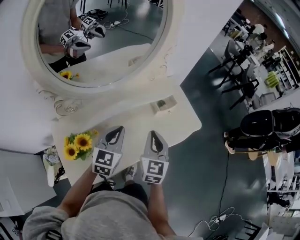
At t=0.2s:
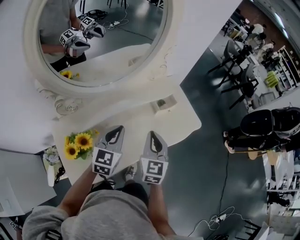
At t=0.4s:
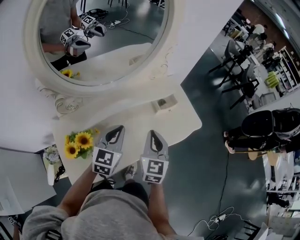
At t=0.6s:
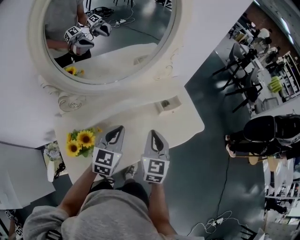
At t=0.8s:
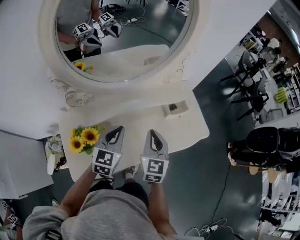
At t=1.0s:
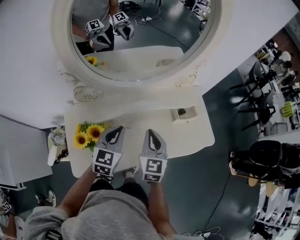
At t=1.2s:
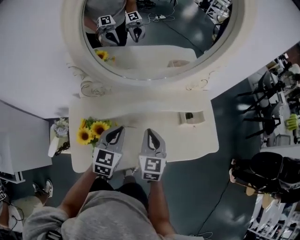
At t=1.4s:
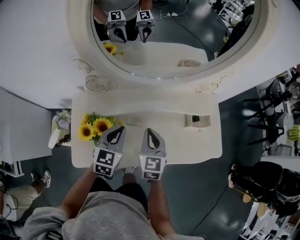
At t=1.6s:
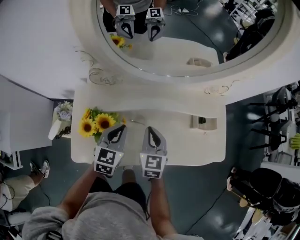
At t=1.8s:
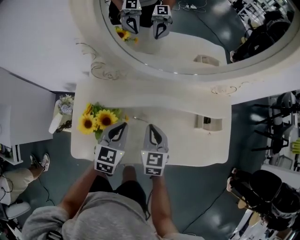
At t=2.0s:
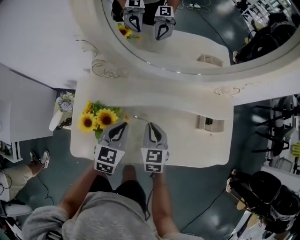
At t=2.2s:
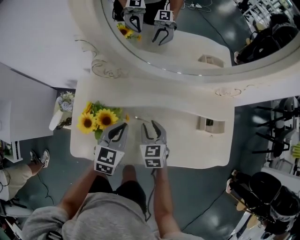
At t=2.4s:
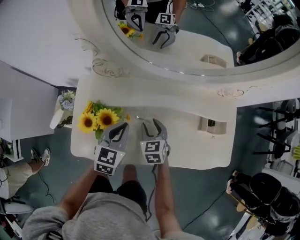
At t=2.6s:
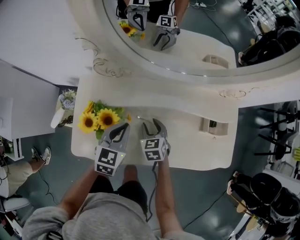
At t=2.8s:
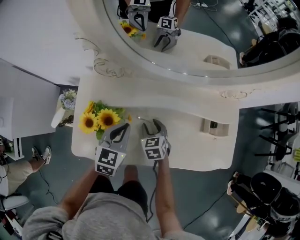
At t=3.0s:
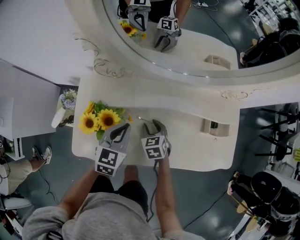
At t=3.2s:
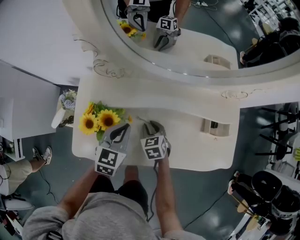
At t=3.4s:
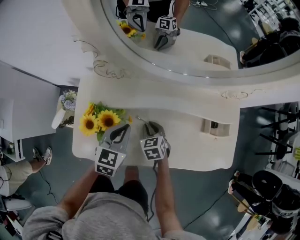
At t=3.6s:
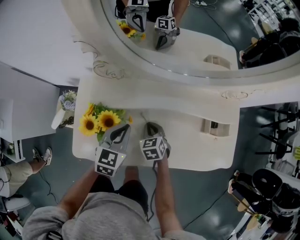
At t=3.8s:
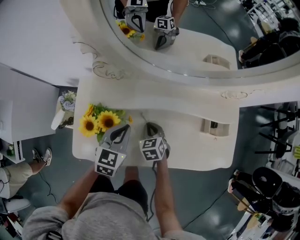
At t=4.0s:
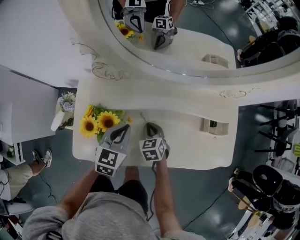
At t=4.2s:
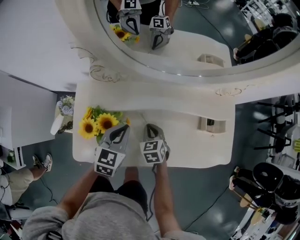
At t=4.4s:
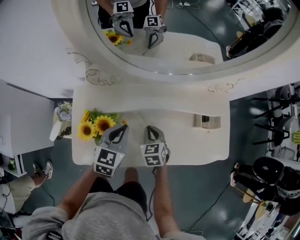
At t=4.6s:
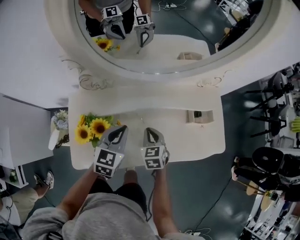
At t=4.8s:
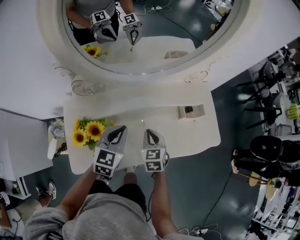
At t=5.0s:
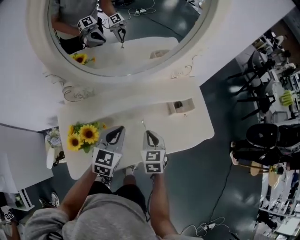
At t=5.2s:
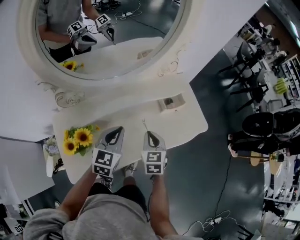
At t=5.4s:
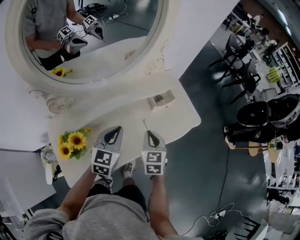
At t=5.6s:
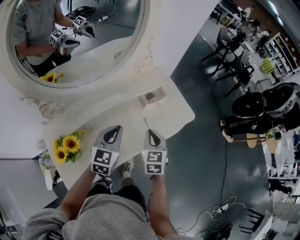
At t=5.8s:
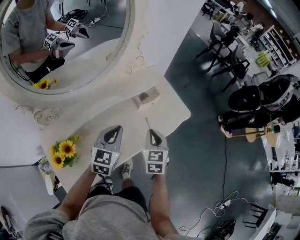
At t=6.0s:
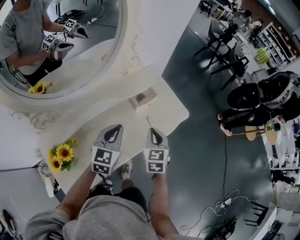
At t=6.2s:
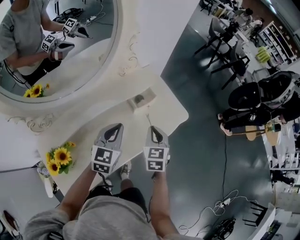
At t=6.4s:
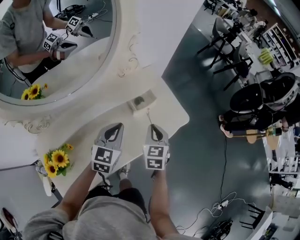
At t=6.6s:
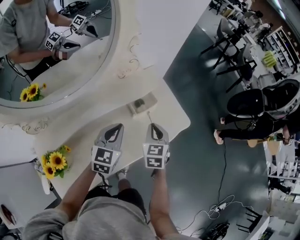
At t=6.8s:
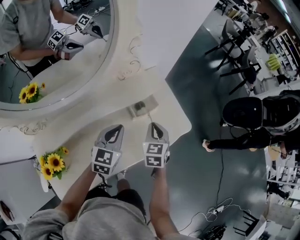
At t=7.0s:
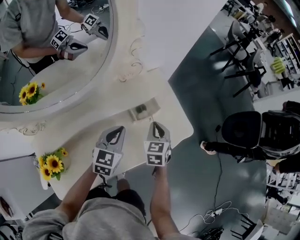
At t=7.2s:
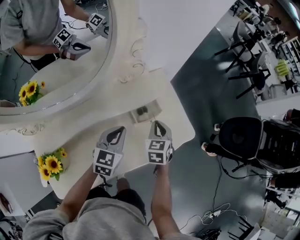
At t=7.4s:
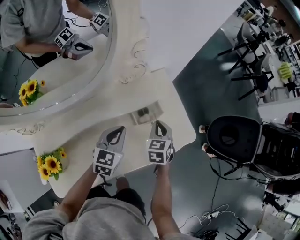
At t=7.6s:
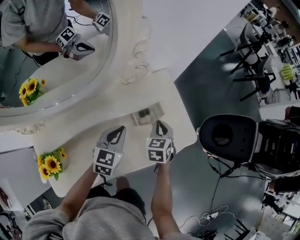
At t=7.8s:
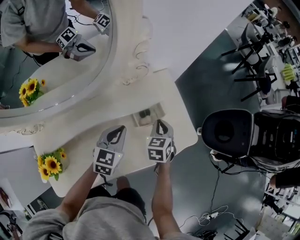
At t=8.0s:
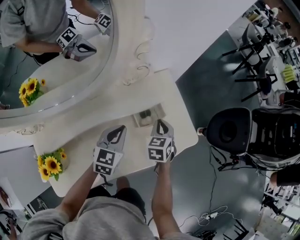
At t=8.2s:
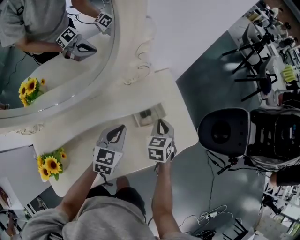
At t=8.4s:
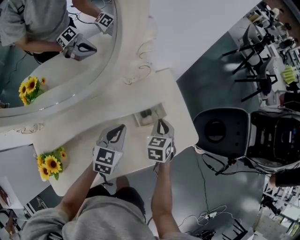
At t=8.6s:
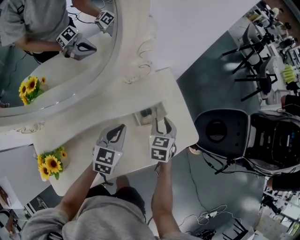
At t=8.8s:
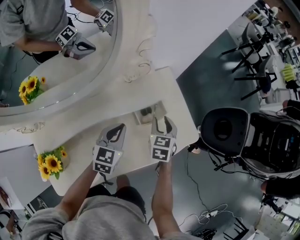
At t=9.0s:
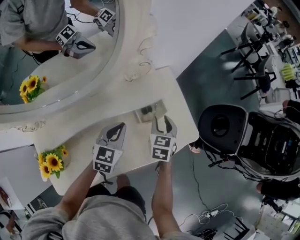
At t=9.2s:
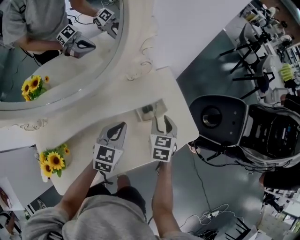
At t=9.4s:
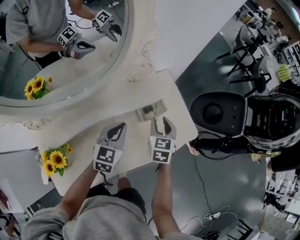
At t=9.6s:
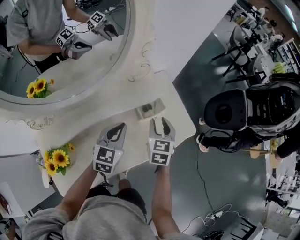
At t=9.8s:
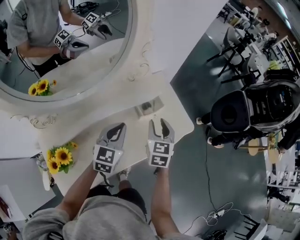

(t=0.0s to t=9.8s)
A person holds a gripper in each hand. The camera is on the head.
t=0.0s - t=1.4s: The left gripper shifts by roughly 15 cm, and turns by some 20 degrees. The right gripper moves about 15 cm, and turns by about 30 degrees.
t=1.4s - t=2.8s: The left gripper moves downward, some 5 cm; the right gripper is displaced downward by some 15 cm, swivels some 30 degrees, and opens up.
t=2.8s - t=4.2s: The right gripper closes up.
t=4.2s - t=5.6s: The left gripper ends up roughly 20 cm from where it was, and swivels roughly 30 degrees. The right gripper moves some 30 cm, and rotates roughly 50 degrees.
t=5.6s - t=7.0s: The right gripper heads forward, covering about 15 cm; the left gripper is displaced forward, to the right and downward by approximately 15 cm.
t=7.0s - t=8.4s: The right gripper shifts some 5 cm forward.
t=8.4s - t=9.8s: The grippers both shift upward and backward by approximately 15 cm. The right gripper opens its fingers.

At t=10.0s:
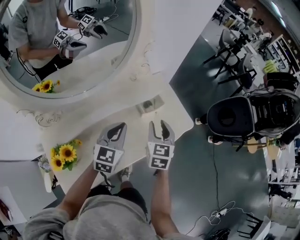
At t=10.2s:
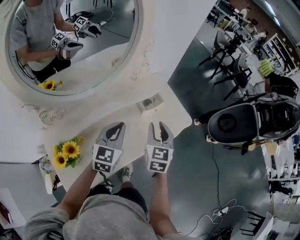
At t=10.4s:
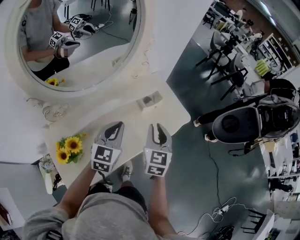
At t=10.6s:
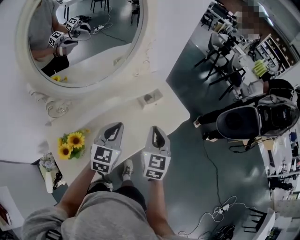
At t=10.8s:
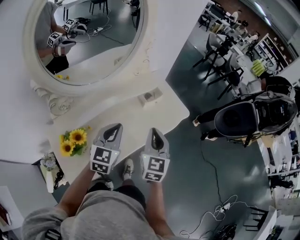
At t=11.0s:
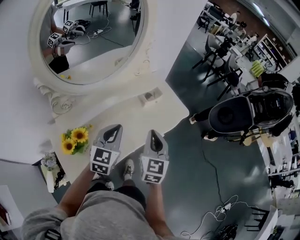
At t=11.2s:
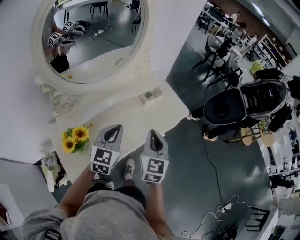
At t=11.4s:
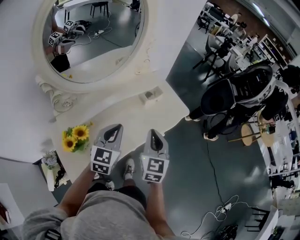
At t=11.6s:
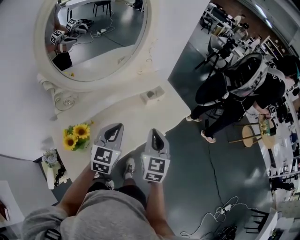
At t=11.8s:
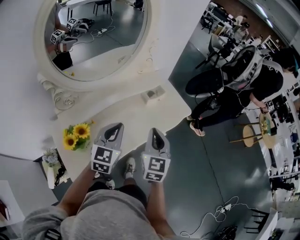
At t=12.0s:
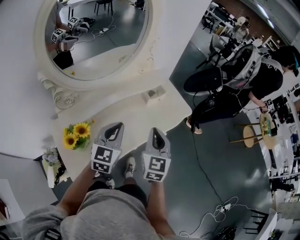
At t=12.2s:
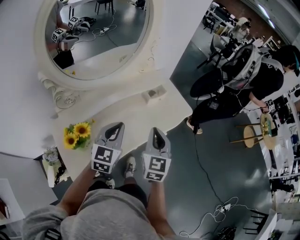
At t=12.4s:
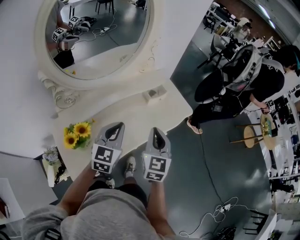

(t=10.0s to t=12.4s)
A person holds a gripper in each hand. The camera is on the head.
t=10.0s - t=11.2s: The grippers both shift backward by approximately 15 cm. The right gripper closes up.
t=11.2s - t=12.4s: Neither gripper changes place.

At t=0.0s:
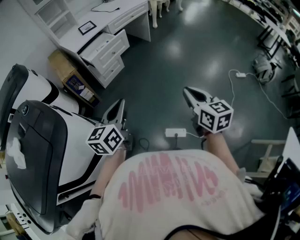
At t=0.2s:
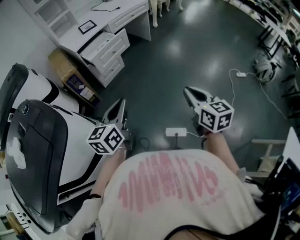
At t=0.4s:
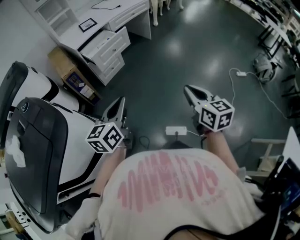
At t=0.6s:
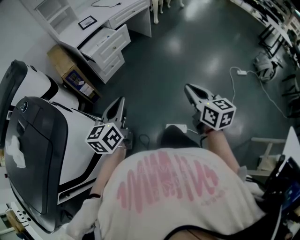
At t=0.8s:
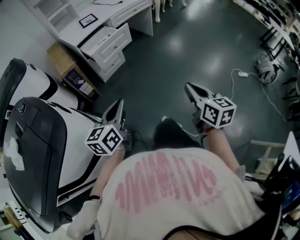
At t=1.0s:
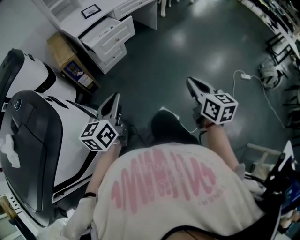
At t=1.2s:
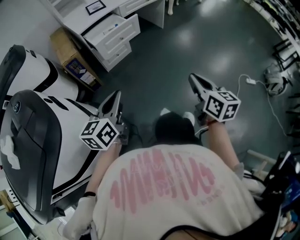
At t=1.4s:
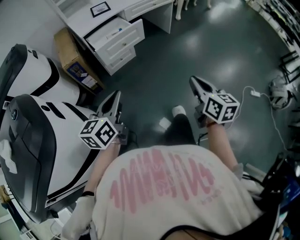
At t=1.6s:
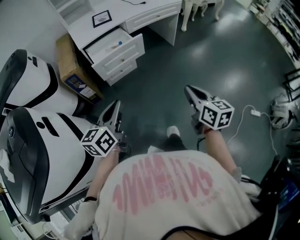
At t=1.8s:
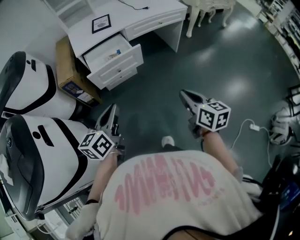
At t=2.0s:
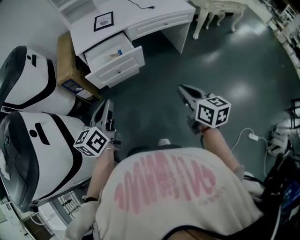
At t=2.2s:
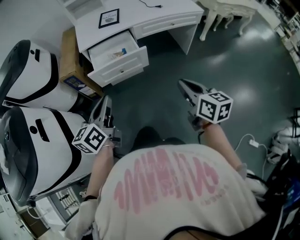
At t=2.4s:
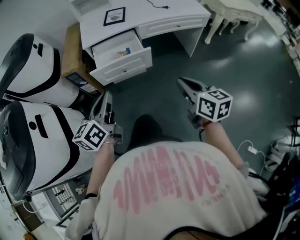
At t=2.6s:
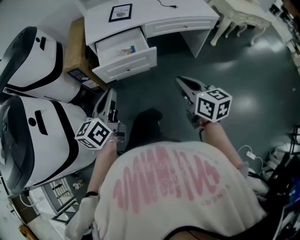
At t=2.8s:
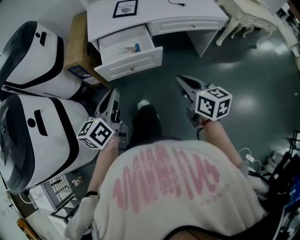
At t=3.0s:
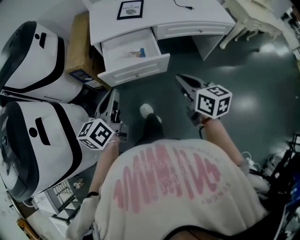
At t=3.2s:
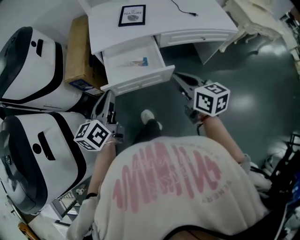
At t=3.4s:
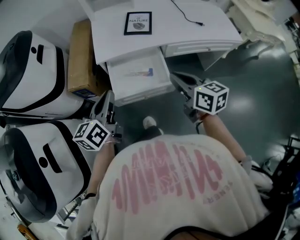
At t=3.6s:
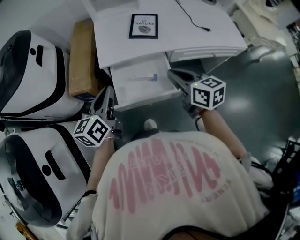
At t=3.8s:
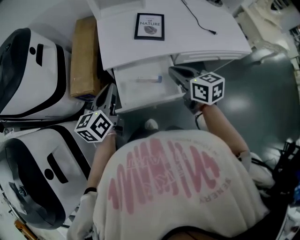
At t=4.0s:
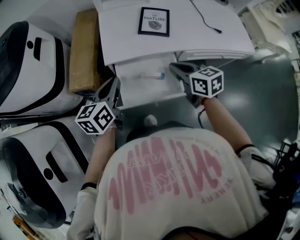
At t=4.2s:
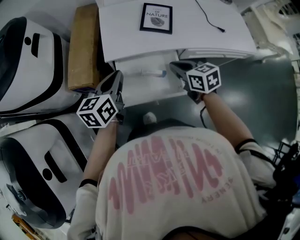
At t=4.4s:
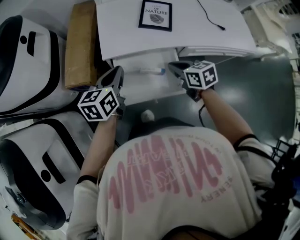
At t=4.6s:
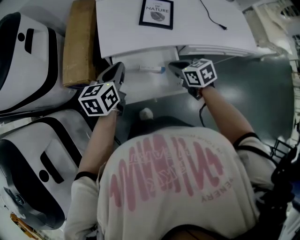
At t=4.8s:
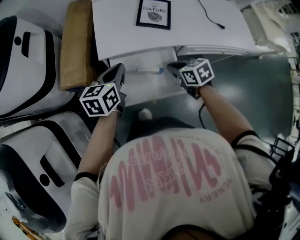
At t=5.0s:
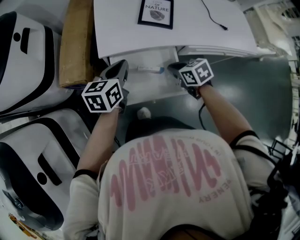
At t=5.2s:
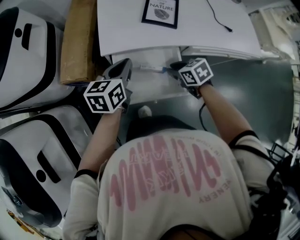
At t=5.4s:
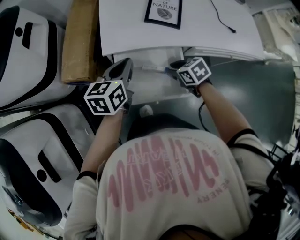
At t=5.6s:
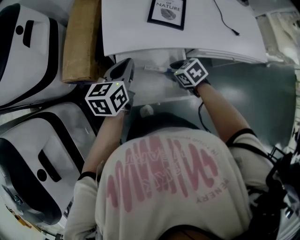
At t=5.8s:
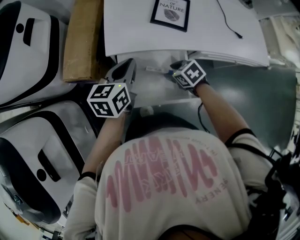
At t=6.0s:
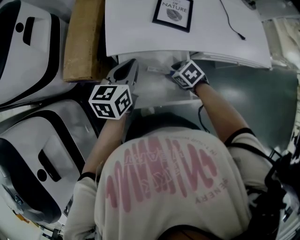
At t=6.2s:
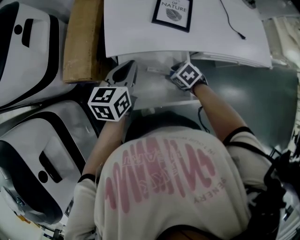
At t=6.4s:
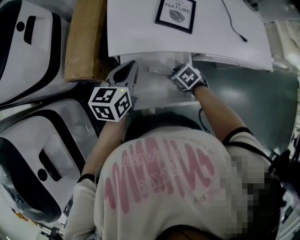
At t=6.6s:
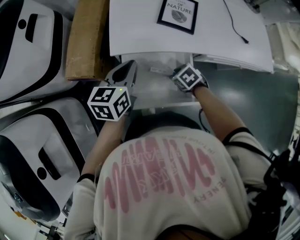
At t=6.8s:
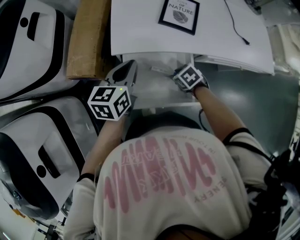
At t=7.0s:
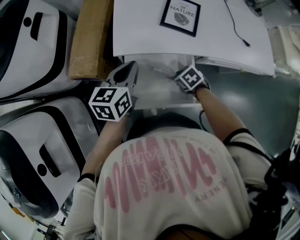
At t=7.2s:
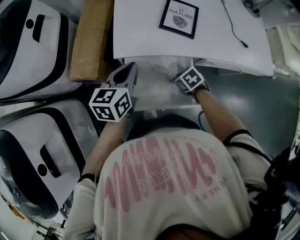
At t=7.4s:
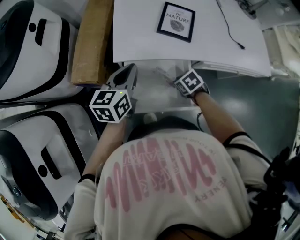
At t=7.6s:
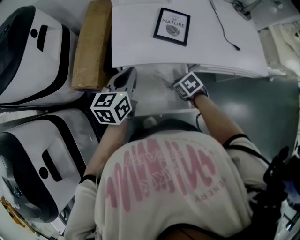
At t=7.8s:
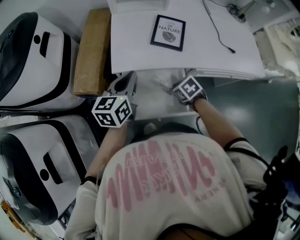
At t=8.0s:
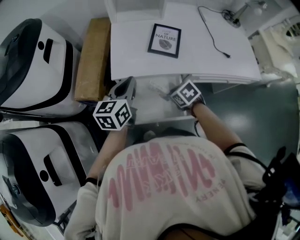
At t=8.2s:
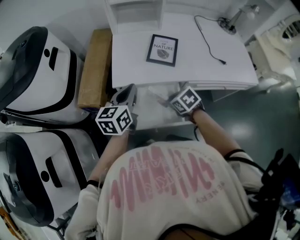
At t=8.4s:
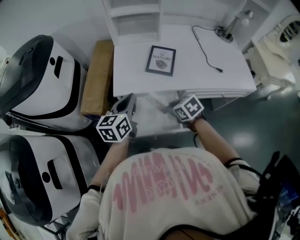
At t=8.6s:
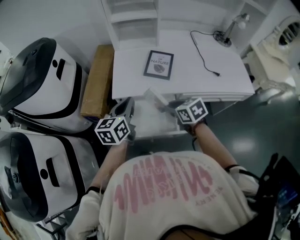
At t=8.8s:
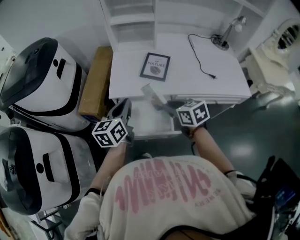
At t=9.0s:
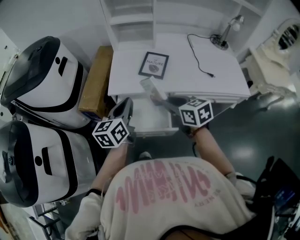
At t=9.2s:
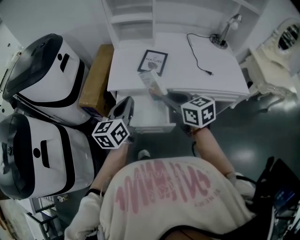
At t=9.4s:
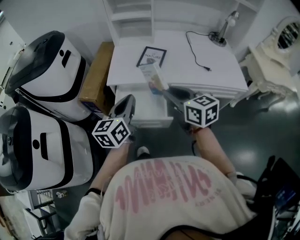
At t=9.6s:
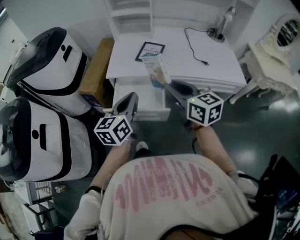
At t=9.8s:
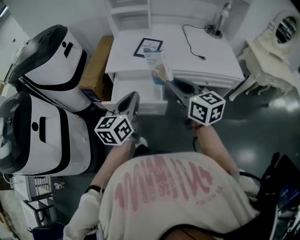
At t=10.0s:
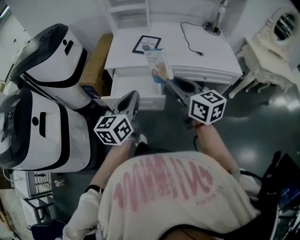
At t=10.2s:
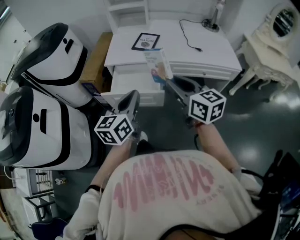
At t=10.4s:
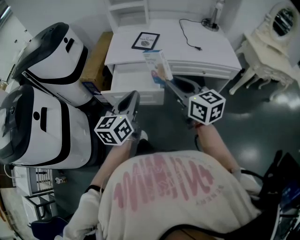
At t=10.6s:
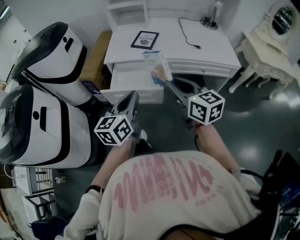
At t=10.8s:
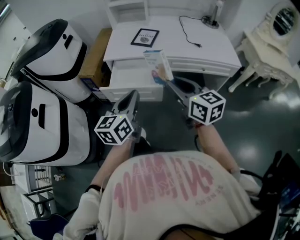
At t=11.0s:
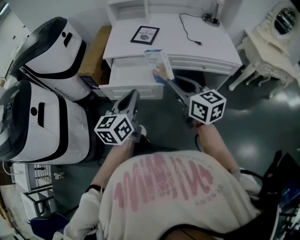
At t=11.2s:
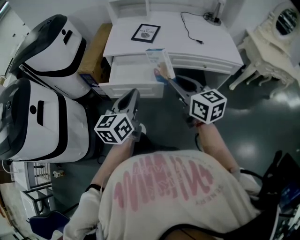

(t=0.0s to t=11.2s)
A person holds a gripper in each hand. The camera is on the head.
t=0.0s - t=1.6s: Both grippers travel together forward, some 25 cm.
t=1.6s - t=3.2s: The right gripper changes place by about 40 cm, and changes its angle by roughly 30 degrees, while the left gripper moves about 30 cm, and rotates roughly 30 degrees.
t=3.2s - t=4.8s: Both grippers move forward and downward, about 25 cm. The right gripper turns by some 40 degrees.
t=4.8s - t=6.4s: The right gripper travels downward by roughly 10 cm, rotates about 30 degrees, and opens its fingers.
t=6.4s - t=8.0s: Both grippers travel together upward, approximately 5 cm.
t=8.0s - t=9.6s: The left gripper goes roughly 25 cm backward and upward. The right gripper is displaced upward and backward by roughly 35 cm, and tilts its fingers some 50 degrees upward.
t=9.6s - t=11.2s: Both grippers move backward, approximately 10 cm.
